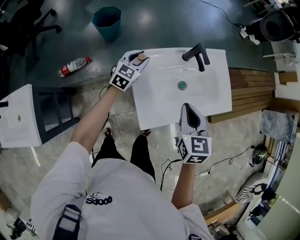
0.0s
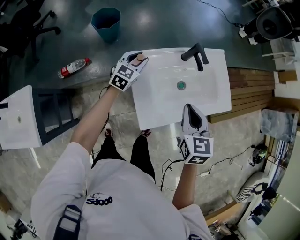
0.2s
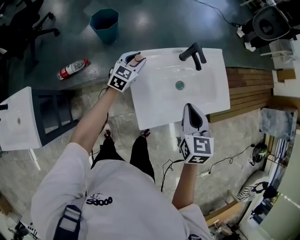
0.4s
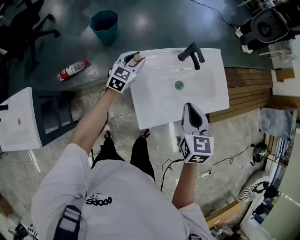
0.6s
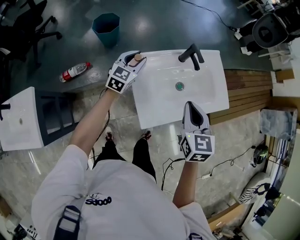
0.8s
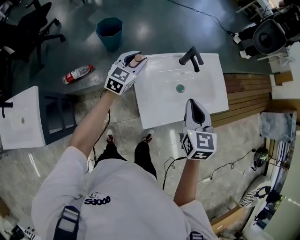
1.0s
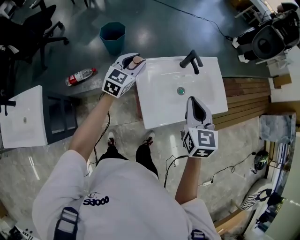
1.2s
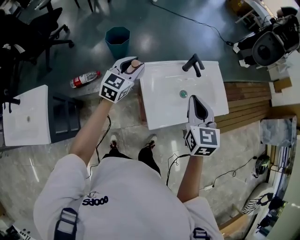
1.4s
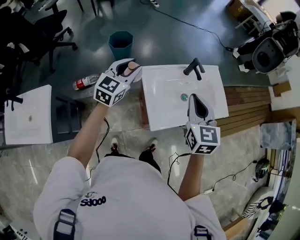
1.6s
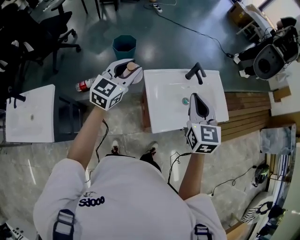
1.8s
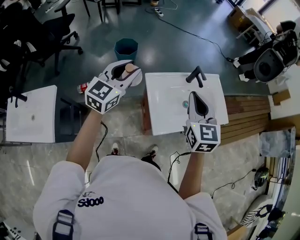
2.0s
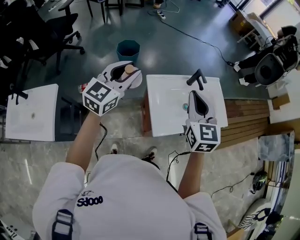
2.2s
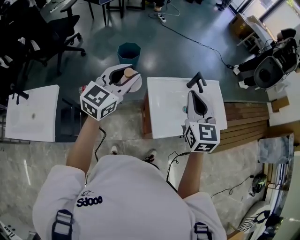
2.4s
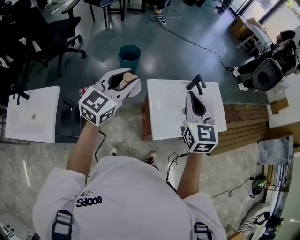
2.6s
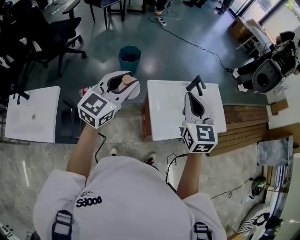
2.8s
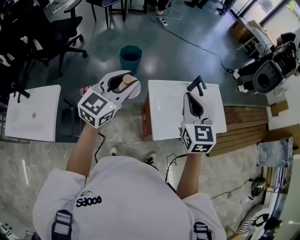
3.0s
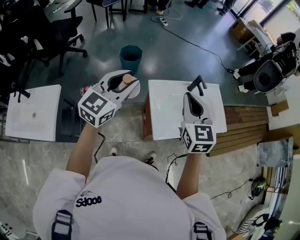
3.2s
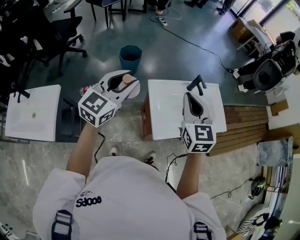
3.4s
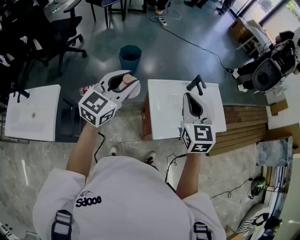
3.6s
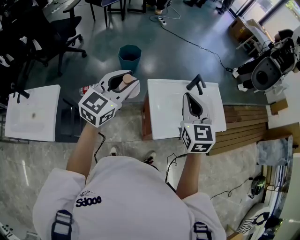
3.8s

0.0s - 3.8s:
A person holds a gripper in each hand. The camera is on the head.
0.0s - 1.2s: The right gripper goes about 10 cm upward; the left gripper moves upward, approximately 15 cm.
1.2s - 2.6s: The left gripper travels upward, backward and to the left by approximately 25 cm. Meanwhile the right gripper goes approximately 15 cm upward and to the left.
2.6s - 3.8s: The grippers move only a little.

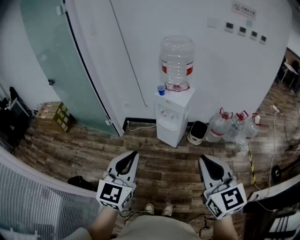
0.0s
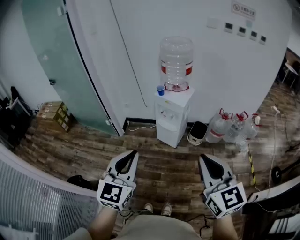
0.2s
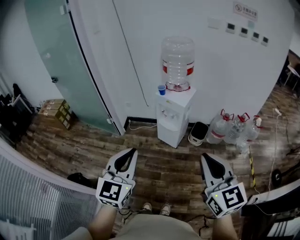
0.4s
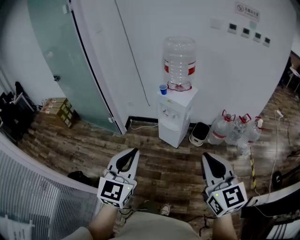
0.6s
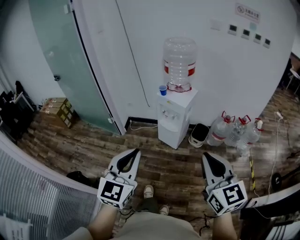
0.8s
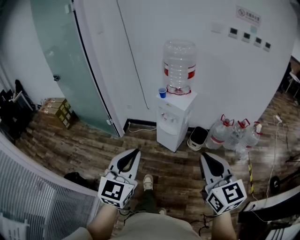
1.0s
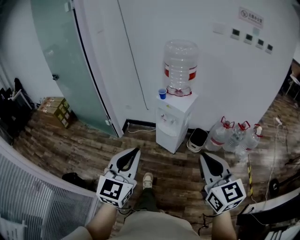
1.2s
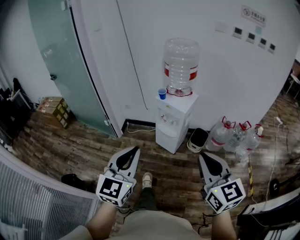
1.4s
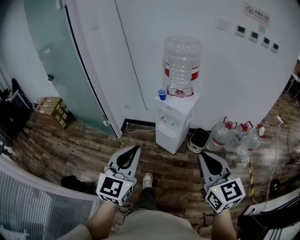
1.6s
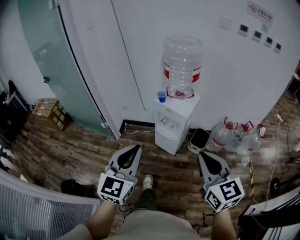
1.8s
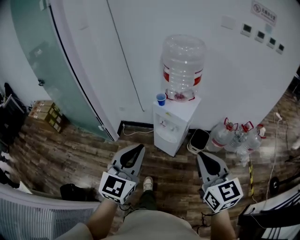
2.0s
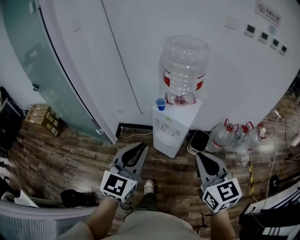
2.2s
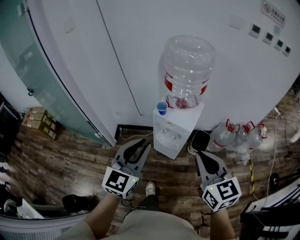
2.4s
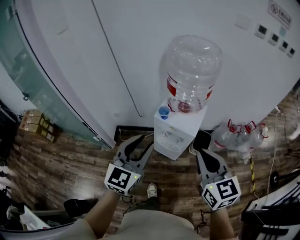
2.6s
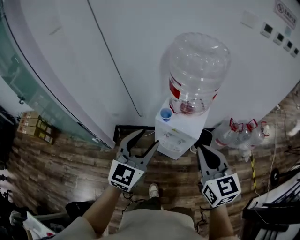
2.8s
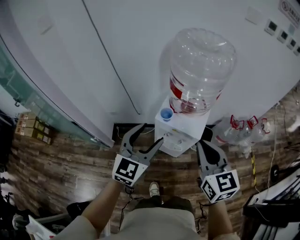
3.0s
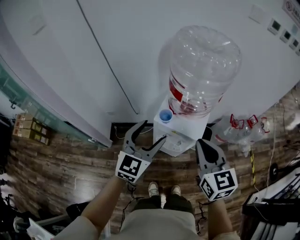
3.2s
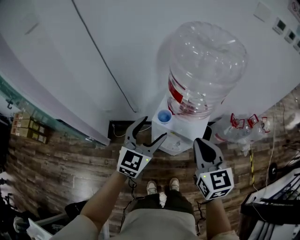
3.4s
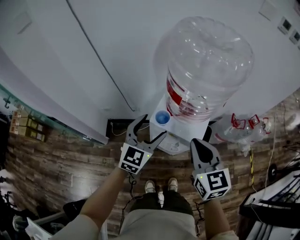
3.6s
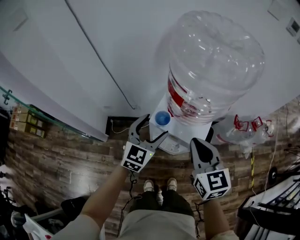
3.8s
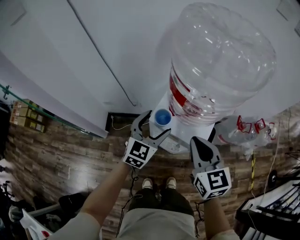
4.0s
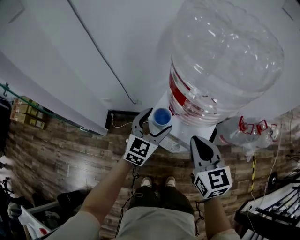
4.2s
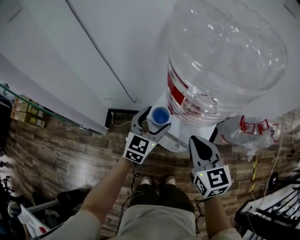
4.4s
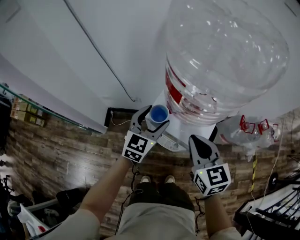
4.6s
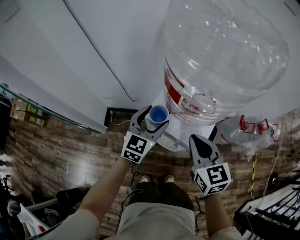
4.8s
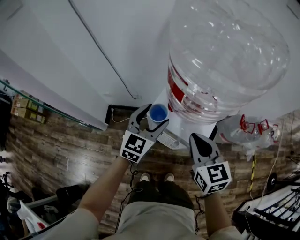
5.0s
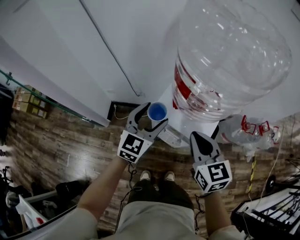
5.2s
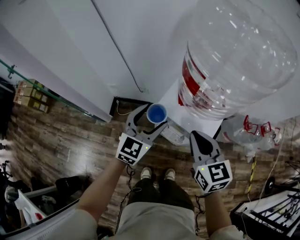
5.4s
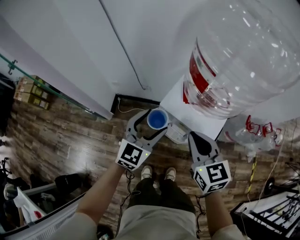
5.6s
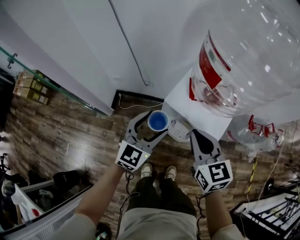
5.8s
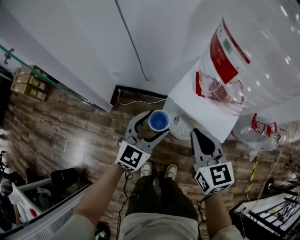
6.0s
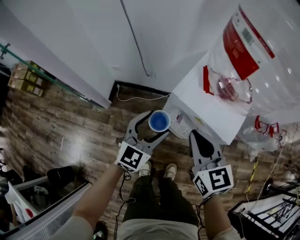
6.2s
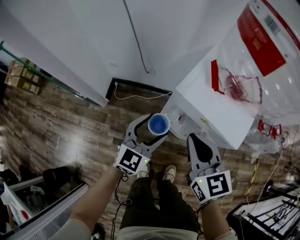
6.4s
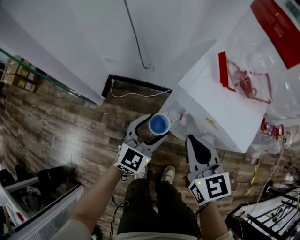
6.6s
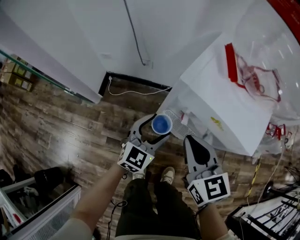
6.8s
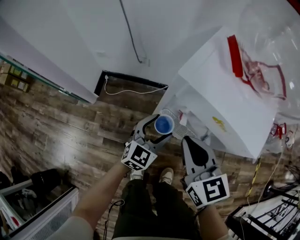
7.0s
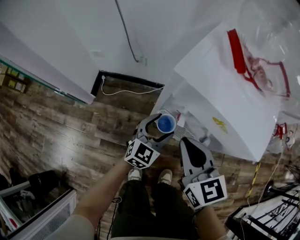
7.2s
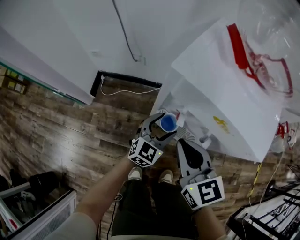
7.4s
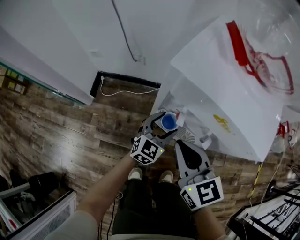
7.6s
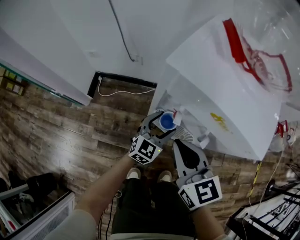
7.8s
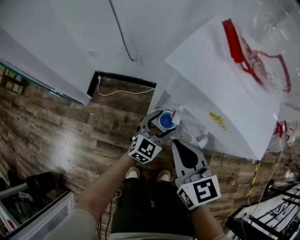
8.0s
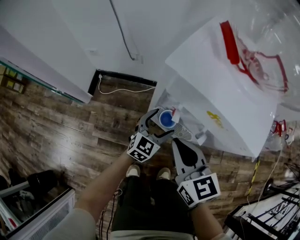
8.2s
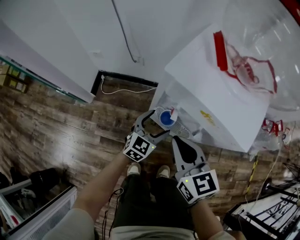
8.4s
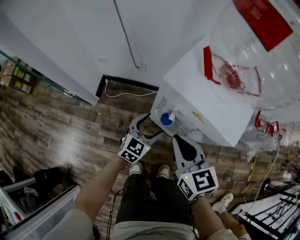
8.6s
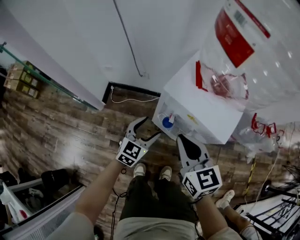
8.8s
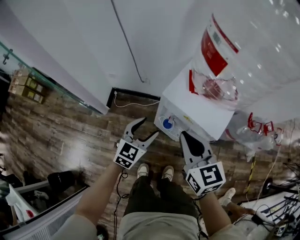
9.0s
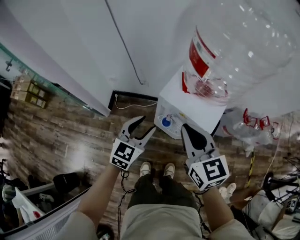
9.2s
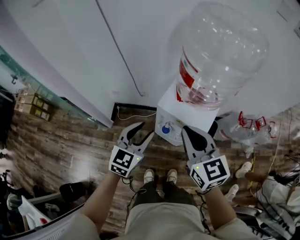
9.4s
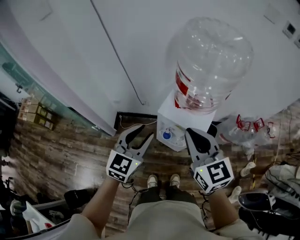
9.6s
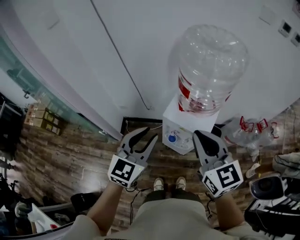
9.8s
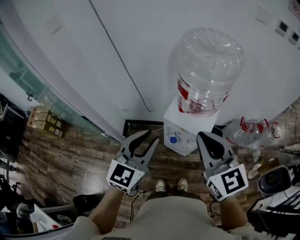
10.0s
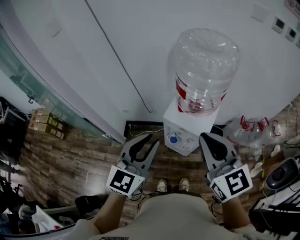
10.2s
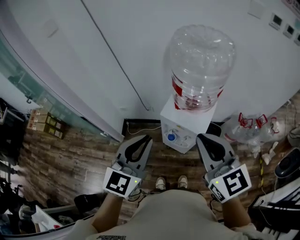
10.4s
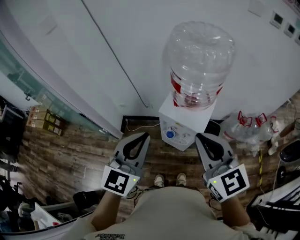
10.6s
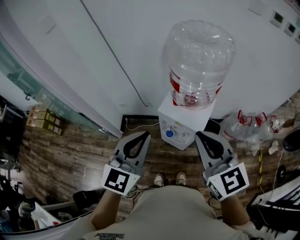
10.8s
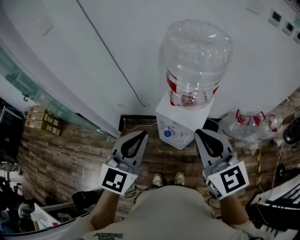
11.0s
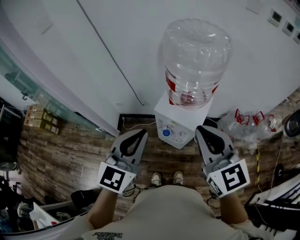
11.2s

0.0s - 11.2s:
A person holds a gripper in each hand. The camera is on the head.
0.0s - 1.6s: The two grippers go some 10 cm forward.
1.6s - 3.2s: The two grippers go about 30 cm forward. The left gripper rotates about 20 degrees, and opens its fingers.
3.2s - 4.8s: Both grippers travel together downward and forward, some 15 cm.
4.8s - 6.4s: The left gripper shifts approximately 15 cm downward, backward and to the left; the right gripper shifts about 15 cm to the left and downward.
6.4s - 8.0s: The left gripper goes approximately 25 cm downward and to the right. The right gripper is displaced downward by roughly 15 cm.
8.0s - 9.6s: Both grippers travel together upward, about 40 cm. The left gripper closes.
9.6s - 11.2s: The right gripper goes approximately 10 cm upward, to the right and backward; the left gripper goes some 15 cm upward and backward, and closes.

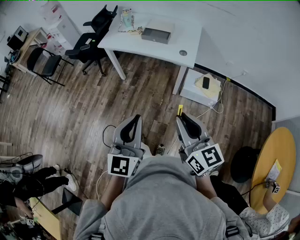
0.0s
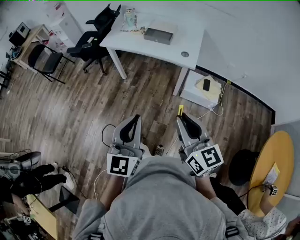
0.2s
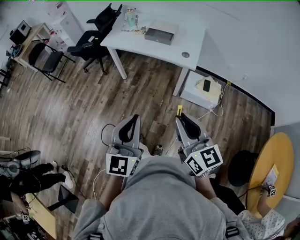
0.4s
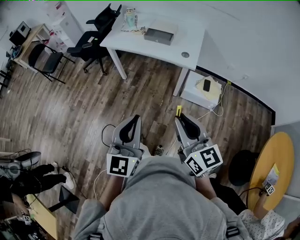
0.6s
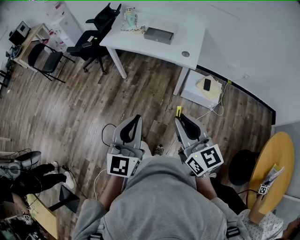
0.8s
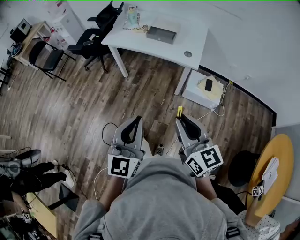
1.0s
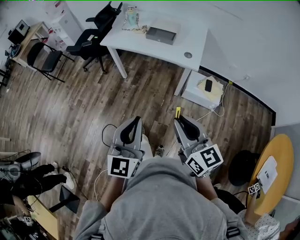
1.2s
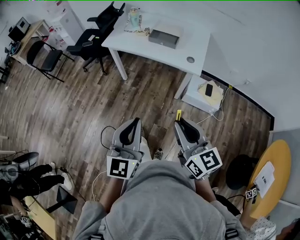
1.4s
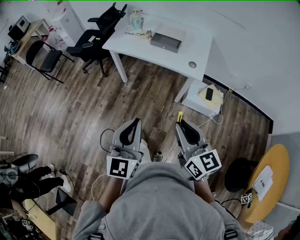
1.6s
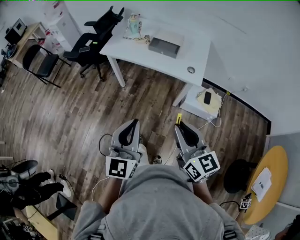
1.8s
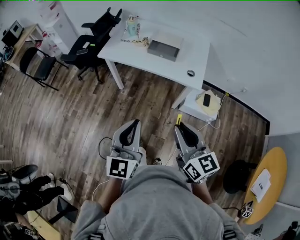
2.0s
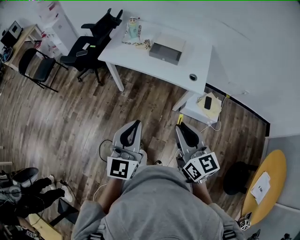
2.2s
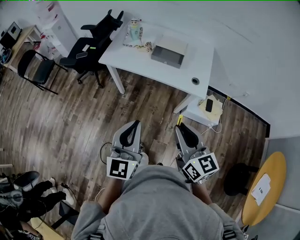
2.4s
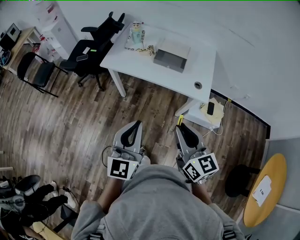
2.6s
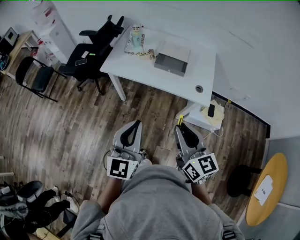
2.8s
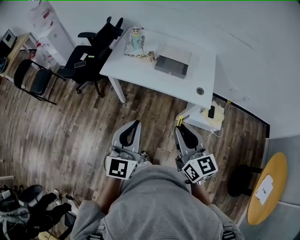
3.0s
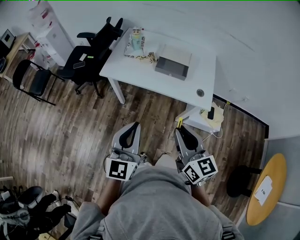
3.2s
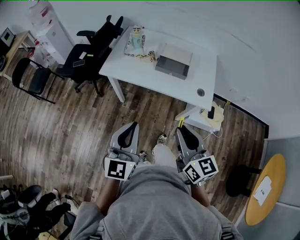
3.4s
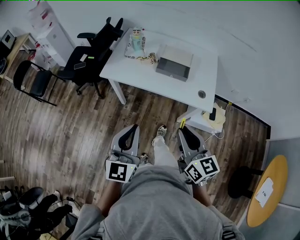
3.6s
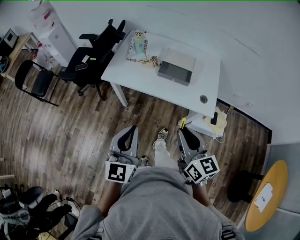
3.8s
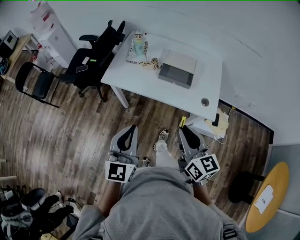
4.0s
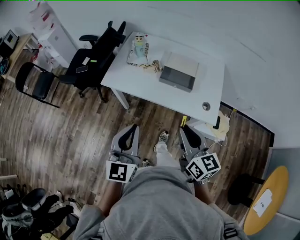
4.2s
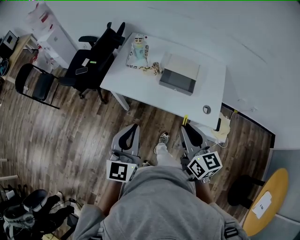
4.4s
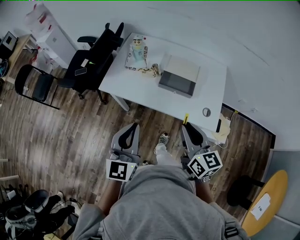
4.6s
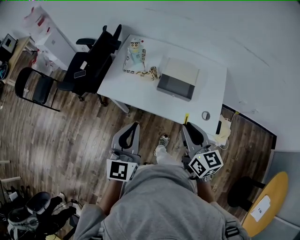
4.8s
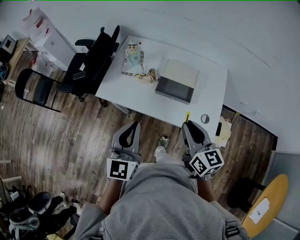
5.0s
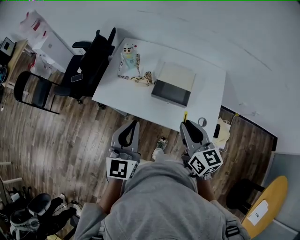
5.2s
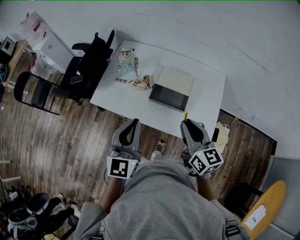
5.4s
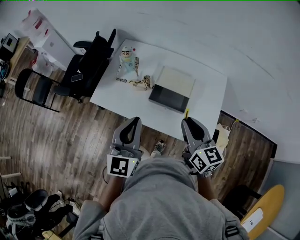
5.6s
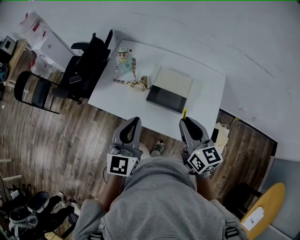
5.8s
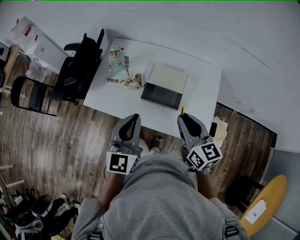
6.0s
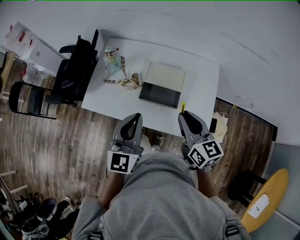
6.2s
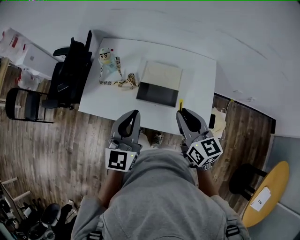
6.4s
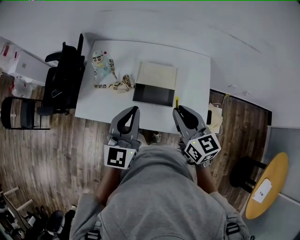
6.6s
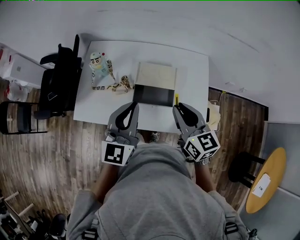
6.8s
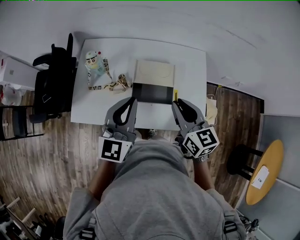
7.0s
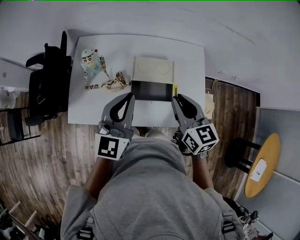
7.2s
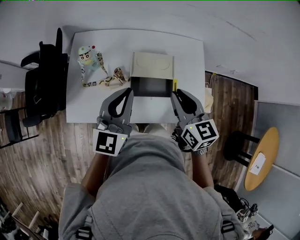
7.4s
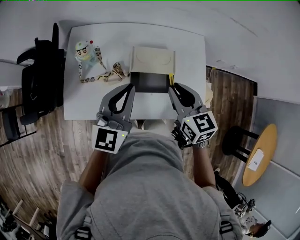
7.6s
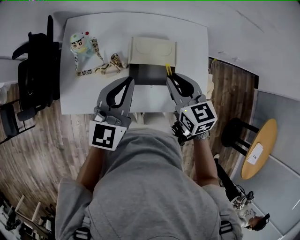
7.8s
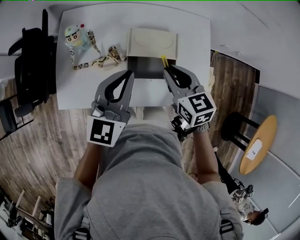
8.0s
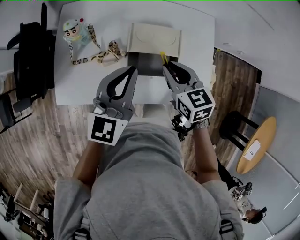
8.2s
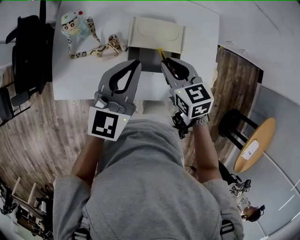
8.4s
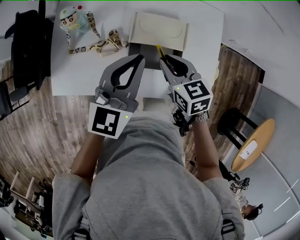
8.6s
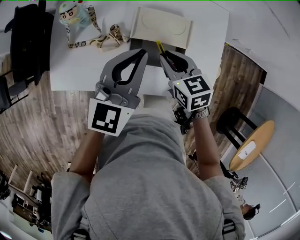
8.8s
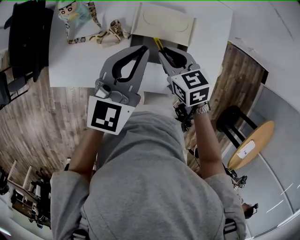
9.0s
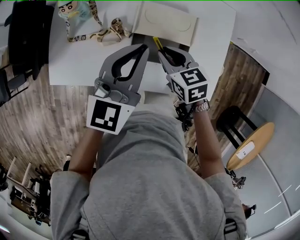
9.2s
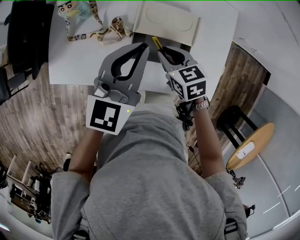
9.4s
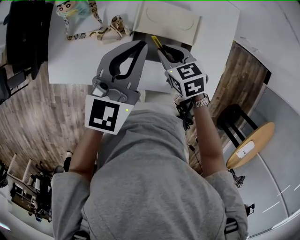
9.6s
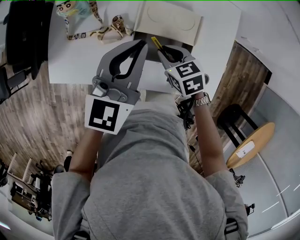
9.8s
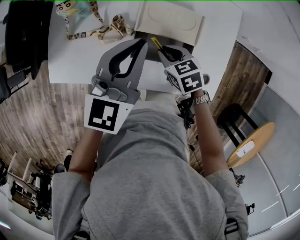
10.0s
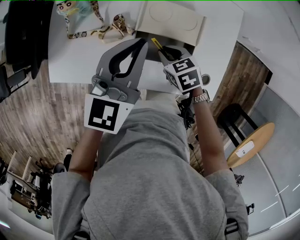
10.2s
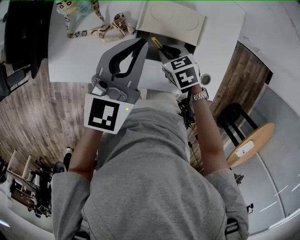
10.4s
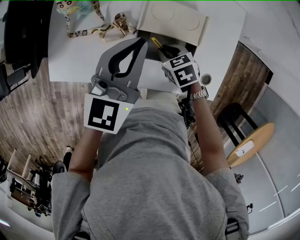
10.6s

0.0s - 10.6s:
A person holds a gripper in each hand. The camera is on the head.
0.0s - 1.6s: The left gripper is displaced forward and to the left by some 10 cm, while the right gripper heads forward, covering some 10 cm.
1.6s - 3.0s: Both grippers travel together forward, approximately 25 cm.
3.0s - 4.6s: Both grippers move forward, about 20 cm.
4.6s - 6.0s: The two grippers go approximately 20 cm forward and to the right.
6.0s - 7.6s: The right gripper heads forward and to the left, covering about 15 cm, and changes its angle by about 20 degrees. The left gripper moves forward, some 15 cm, and rotates approximately 30 degrees.
7.6s - 9.0s: The left gripper is displaced downward by some 5 cm; the right gripper heads downward, covering approximately 15 cm, and turns by roughly 20 degrees.
9.0s - 10.6s: The right gripper travels downward by roughly 10 cm, and swivels about 20 degrees.
